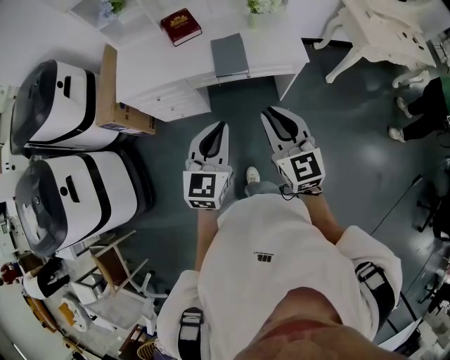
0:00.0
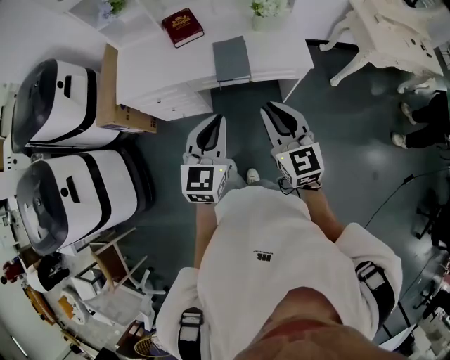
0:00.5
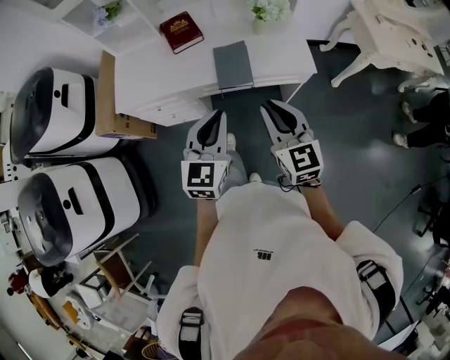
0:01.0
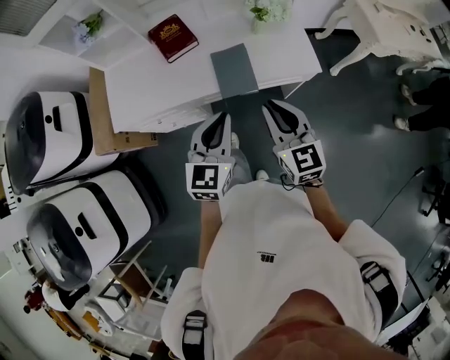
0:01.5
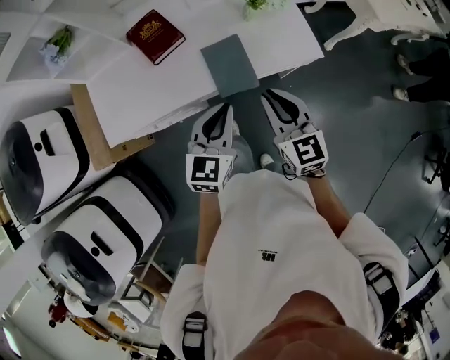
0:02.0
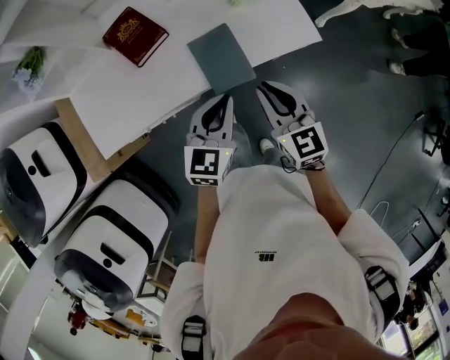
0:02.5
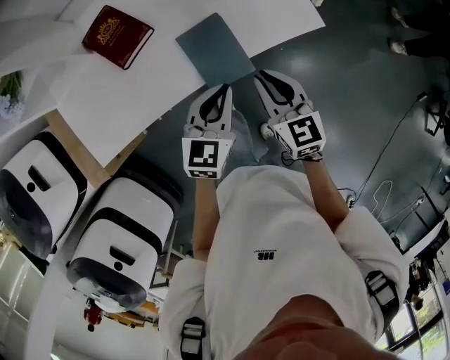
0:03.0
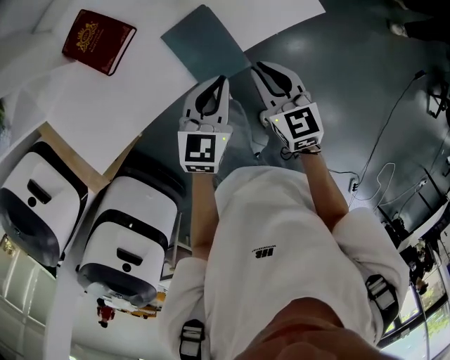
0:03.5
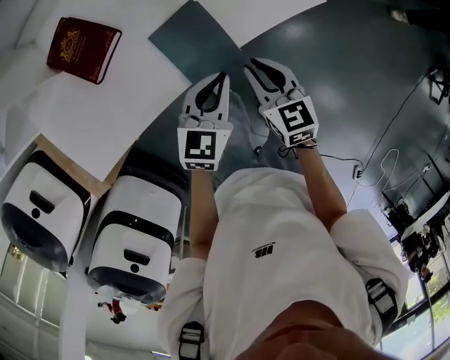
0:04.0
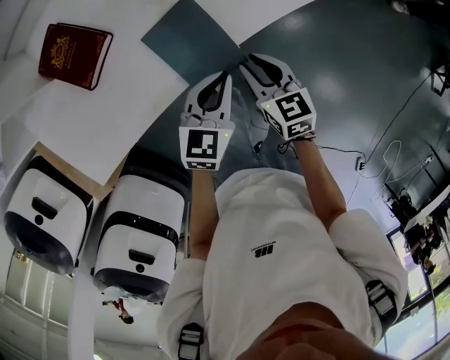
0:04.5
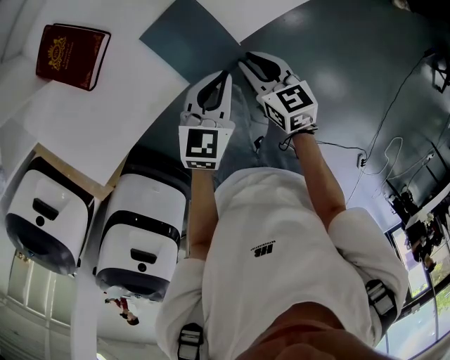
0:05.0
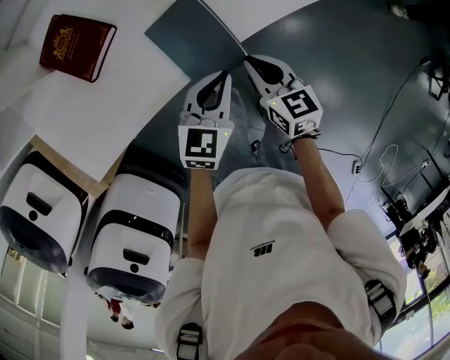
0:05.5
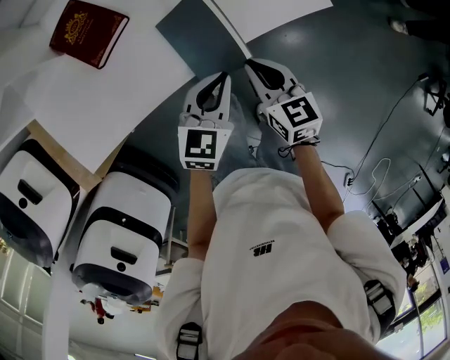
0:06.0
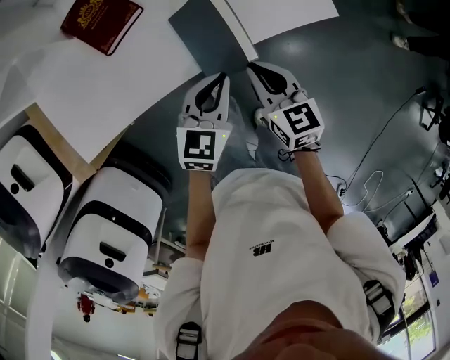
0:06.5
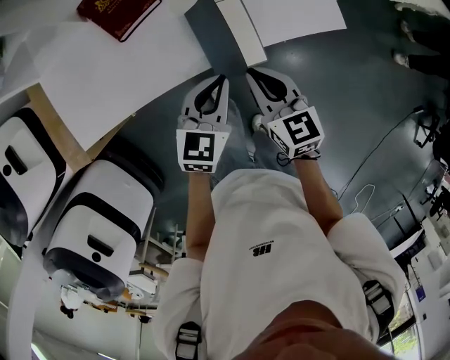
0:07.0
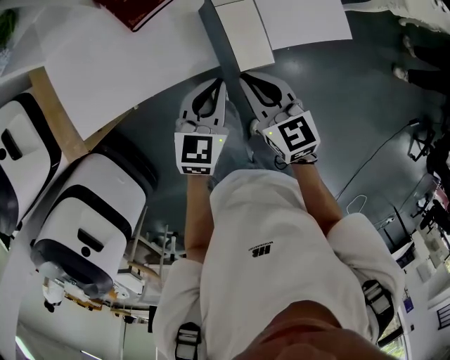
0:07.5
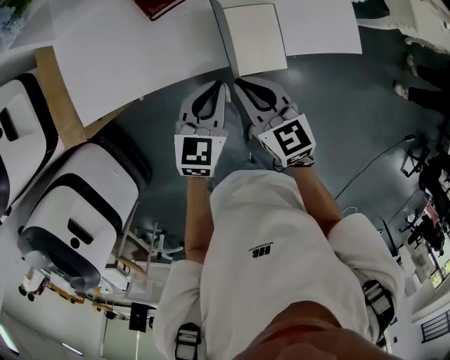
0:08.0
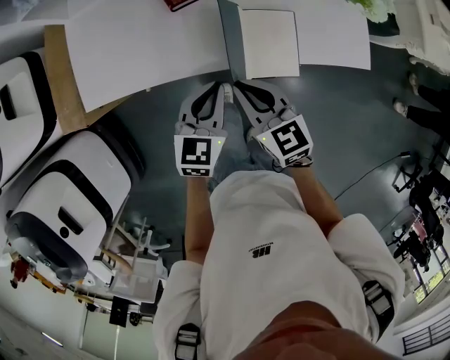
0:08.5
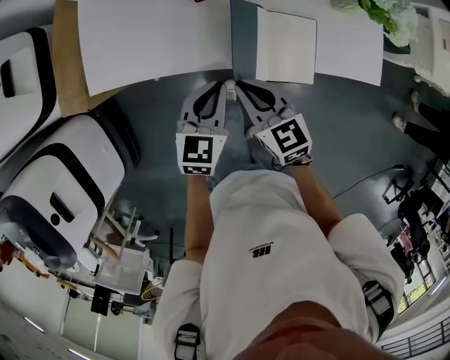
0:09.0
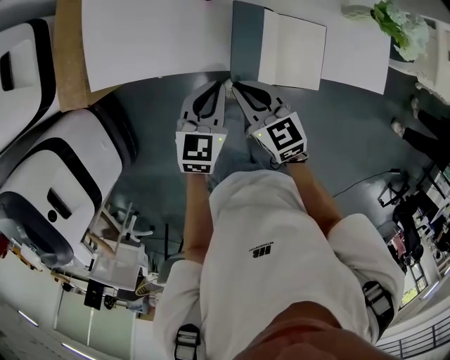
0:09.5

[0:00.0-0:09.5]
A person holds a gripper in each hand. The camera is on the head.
0:00.0 to 0:02.0: The grippers both shift forward by approximately 25 cm.
0:02.0 to 0:04.0: The left gripper travels downward and forward by about 20 cm, and rotates about 20 degrees. The right gripper travels downward by some 20 cm, and turns by roughly 20 degrees.
0:05.5 to 0:07.5: Both grippers move to the left and upward, approximately 15 cm. The right gripper rotates approximately 20 degrees.
0:07.5 to 0:09.5: Both grippers move to the left, approximately 15 cm. The right gripper changes its angle by some 20 degrees.

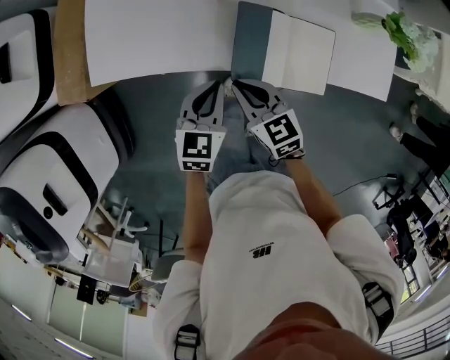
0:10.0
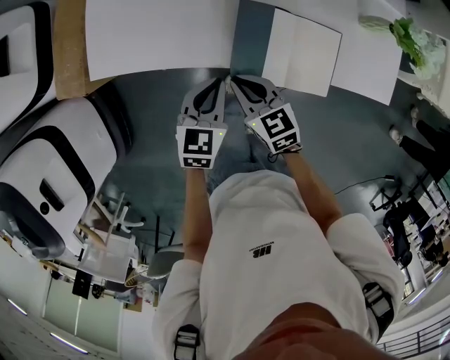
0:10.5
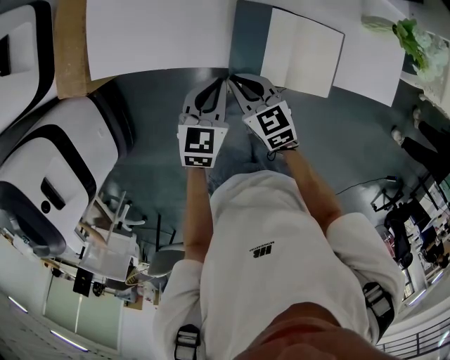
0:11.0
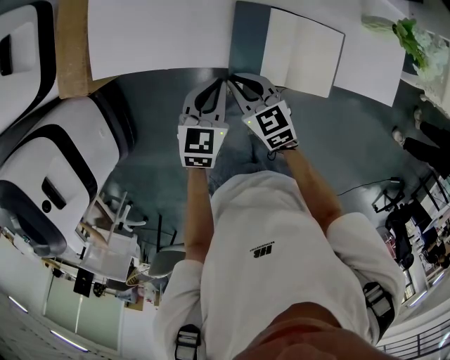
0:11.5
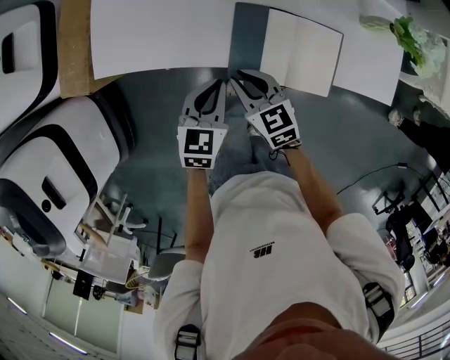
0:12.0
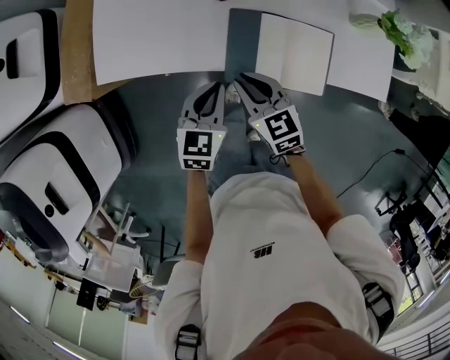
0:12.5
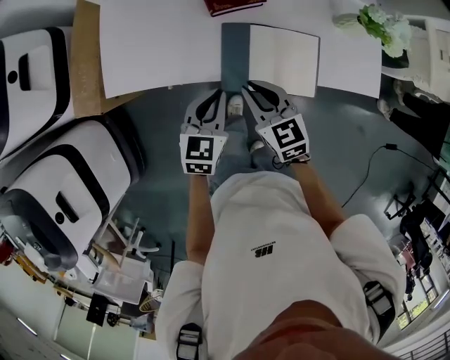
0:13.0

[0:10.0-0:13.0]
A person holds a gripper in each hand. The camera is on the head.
0:10.0 to 0:11.5: There are only small adjustments of the grippers.
0:11.5 to 0:13.0: The right gripper shifts some 10 cm upward and to the right, while the left gripper goes about 5 cm upward.

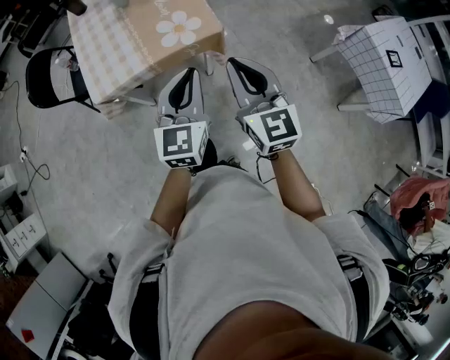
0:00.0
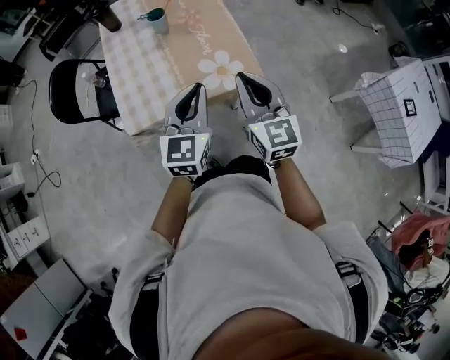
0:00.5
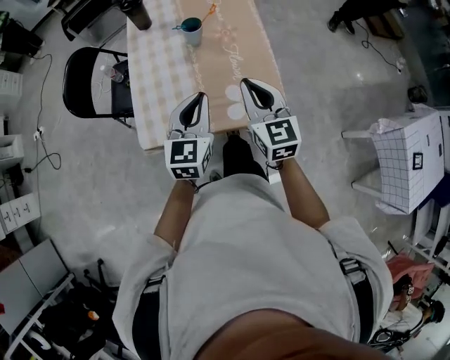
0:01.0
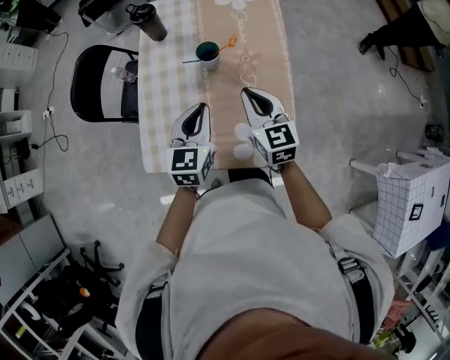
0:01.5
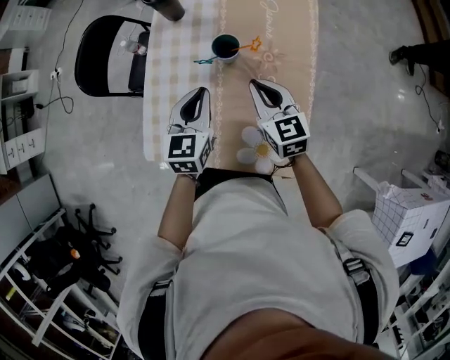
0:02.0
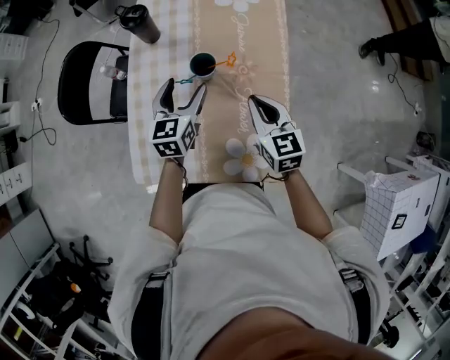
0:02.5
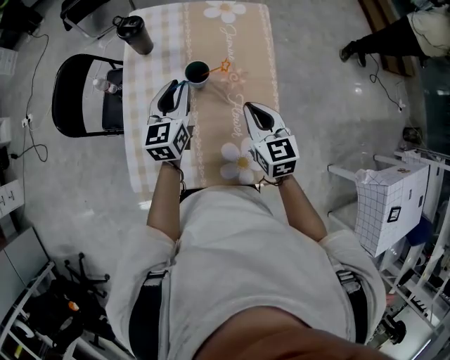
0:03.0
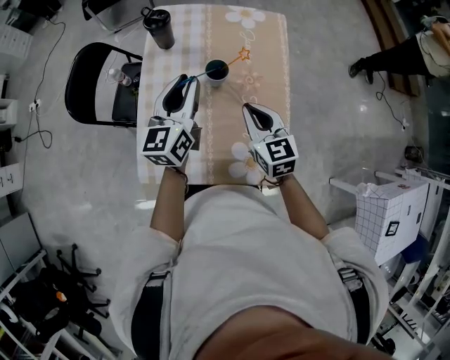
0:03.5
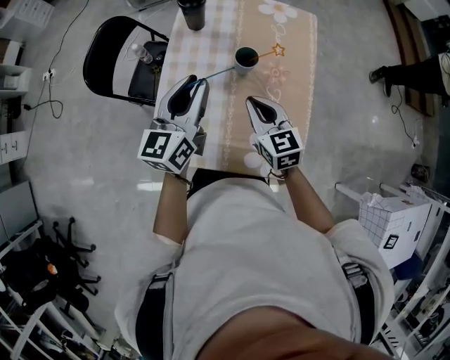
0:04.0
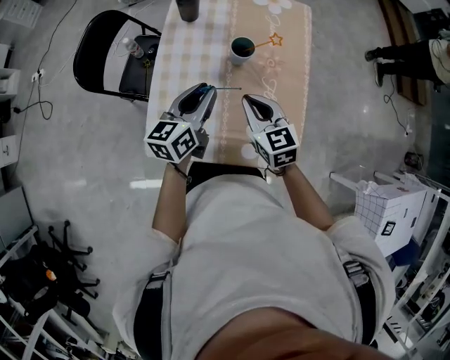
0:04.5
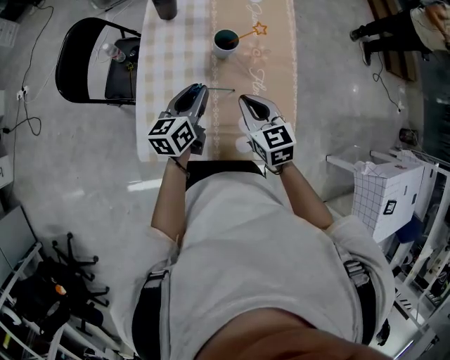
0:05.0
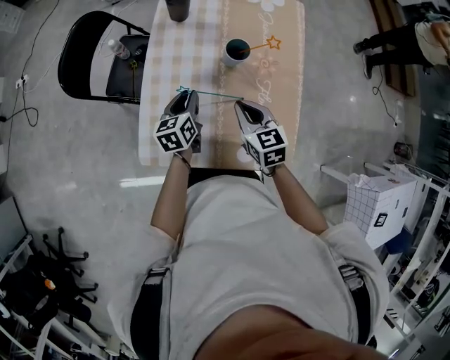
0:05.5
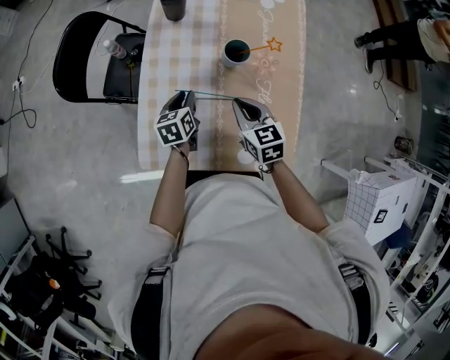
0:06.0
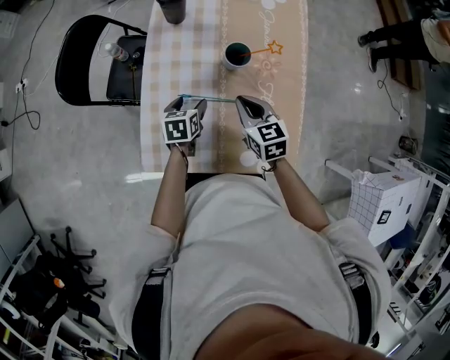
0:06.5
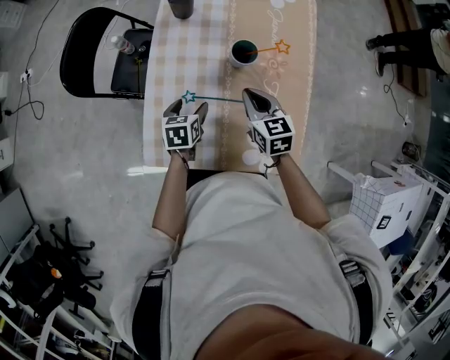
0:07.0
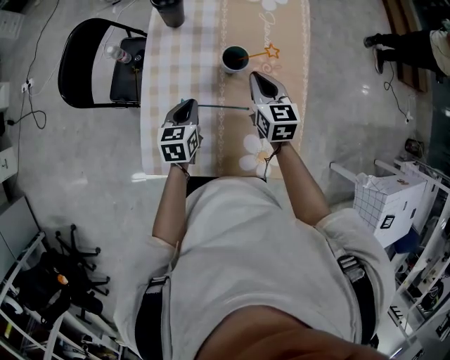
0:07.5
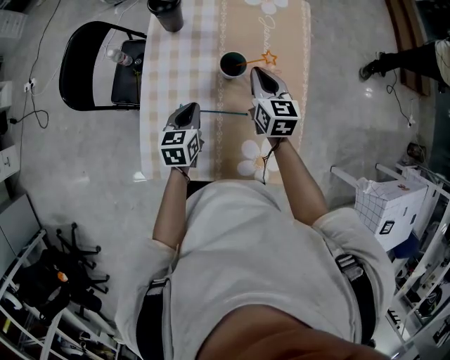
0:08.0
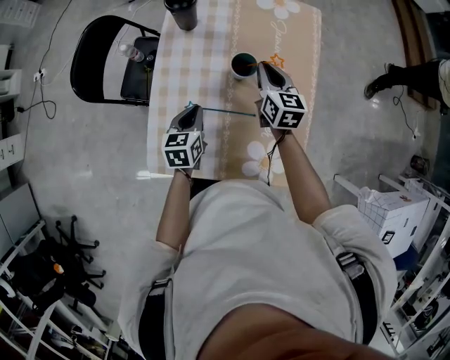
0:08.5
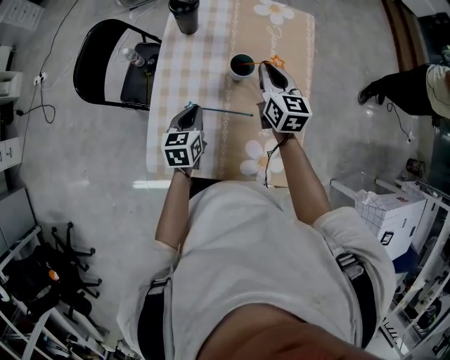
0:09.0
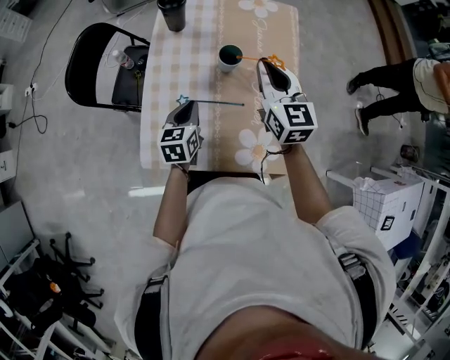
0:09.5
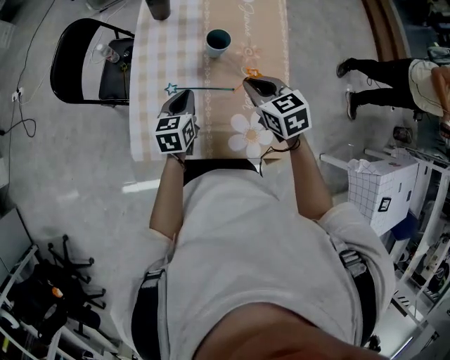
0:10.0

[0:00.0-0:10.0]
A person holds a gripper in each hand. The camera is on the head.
0:00.0 to 0:02.0: The pair of grippers is taken roughly 50 cm. The left gripper turns by approximately 30 degrees; the right gripper swivels some 40 degrees.
0:02.0 to 0:04.0: The right gripper goes about 10 cm to the left. Meanwhile the left gripper travels upward and to the left by roughly 15 cm, rotates approximately 30 degrees, and opens, then closes again.
0:04.0 to 0:06.0: The right gripper is displaced downward by about 10 cm. The left gripper shifts roughly 25 cm downward, and points its fingers roughly 40 degrees further downward.
0:06.0 to 0:08.0: The right gripper travels forward and to the right by approximately 15 cm. Meanwhile the left gripper changes place by approximately 5 cm, and opens, then closes again.
0:08.0 to 0:10.0: The right gripper heads backward, covering some 15 cm, and changes its angle by roughly 30 degrees, while the left gripper is displaced backward by roughly 5 cm.

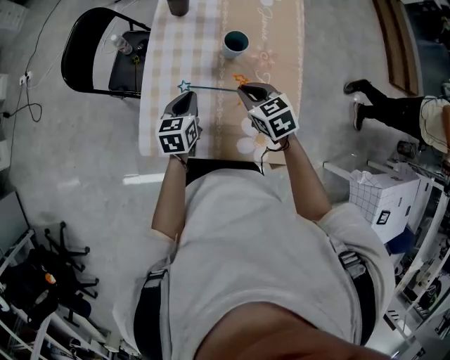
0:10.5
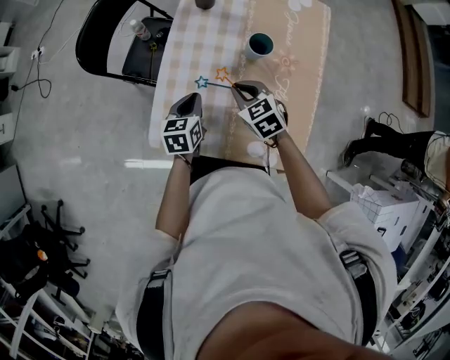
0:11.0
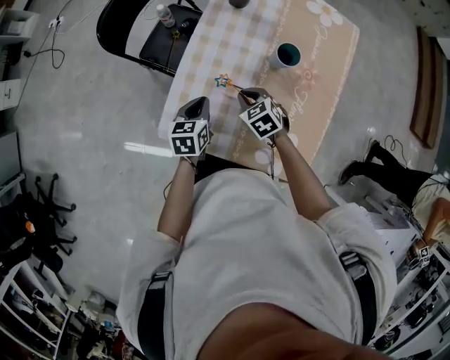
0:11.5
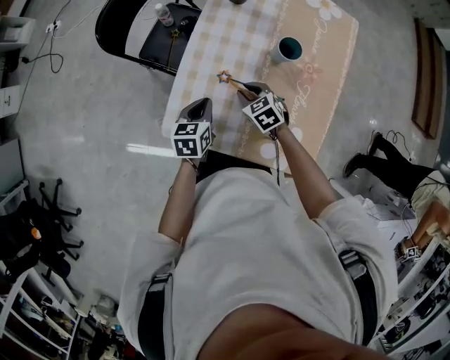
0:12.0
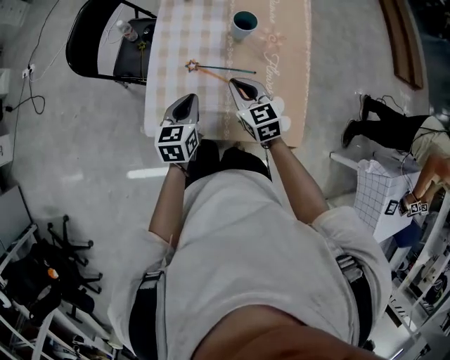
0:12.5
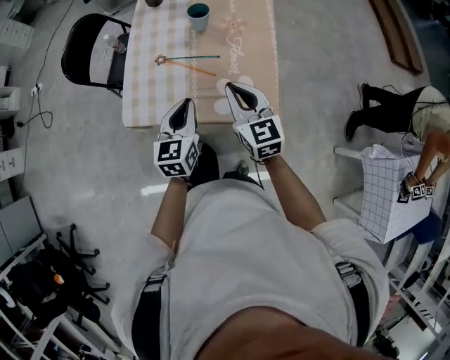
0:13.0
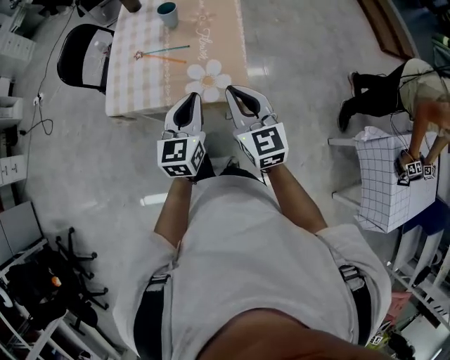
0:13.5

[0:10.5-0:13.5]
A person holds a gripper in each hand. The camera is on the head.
0:10.5 to 0:12.0: The right gripper goes roughly 15 cm downward and to the left, while the left gripper is displaced to the left by roughly 10 cm.
0:12.0 to 0:13.5: The right gripper travels upward and to the right by about 40 cm, tips its fingers upward by approximately 40 degrees, and closes up; the left gripper is displaced to the right and upward by approximately 35 cm, and rotates roughly 30 degrees.
